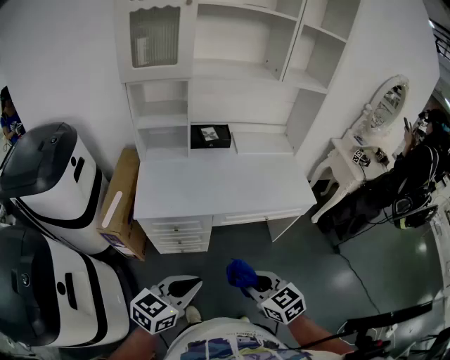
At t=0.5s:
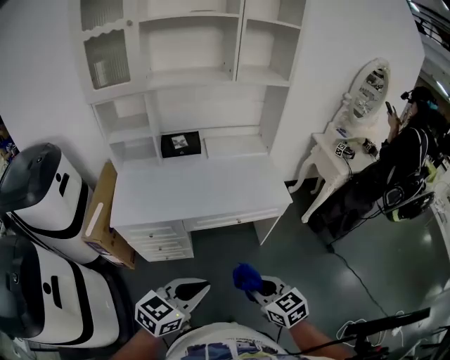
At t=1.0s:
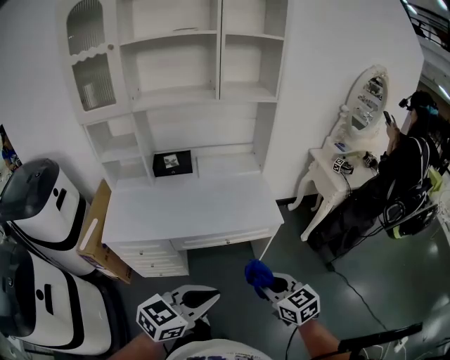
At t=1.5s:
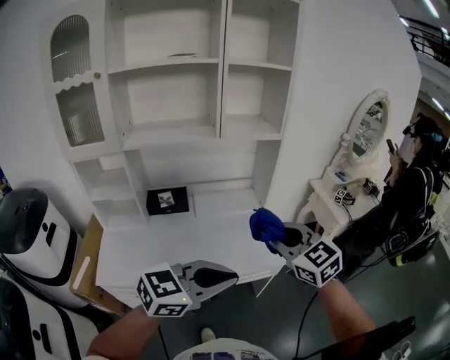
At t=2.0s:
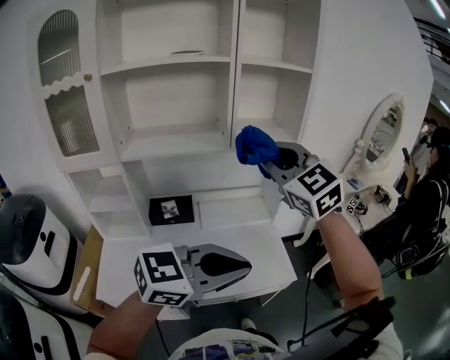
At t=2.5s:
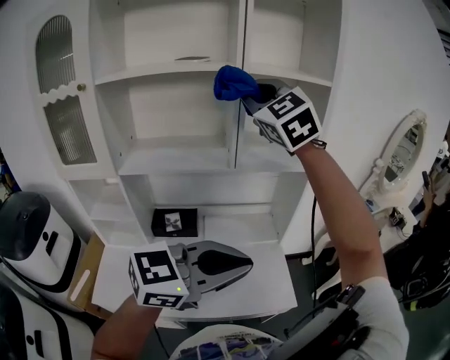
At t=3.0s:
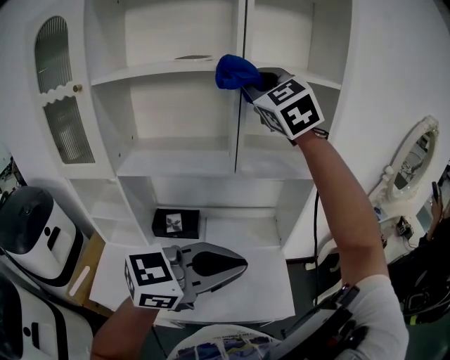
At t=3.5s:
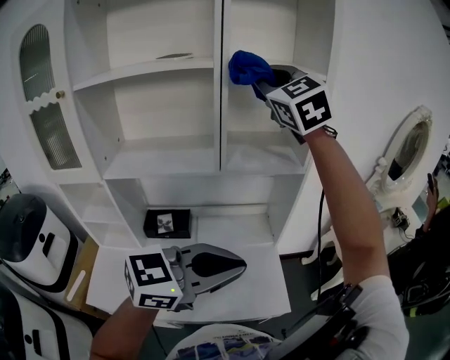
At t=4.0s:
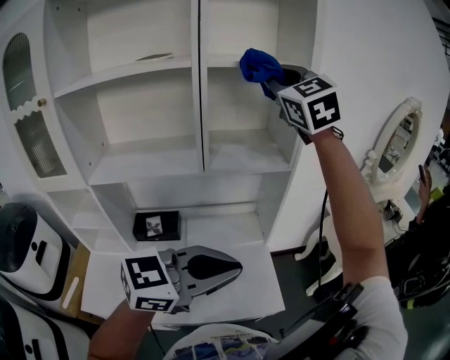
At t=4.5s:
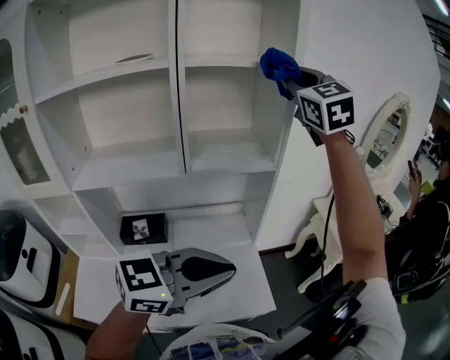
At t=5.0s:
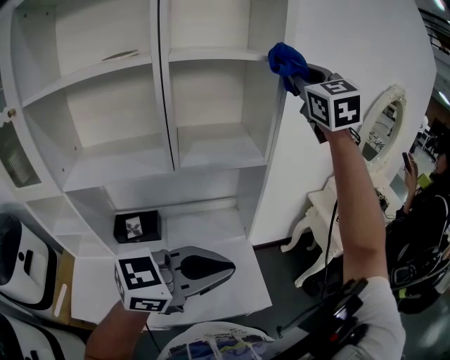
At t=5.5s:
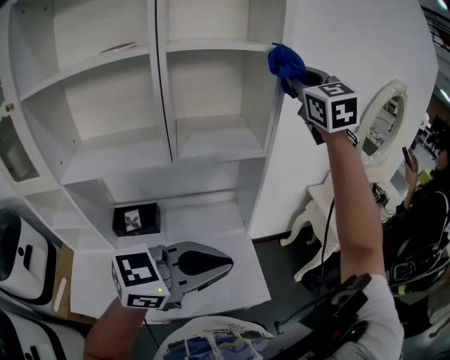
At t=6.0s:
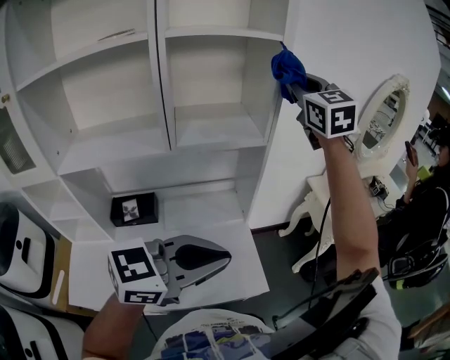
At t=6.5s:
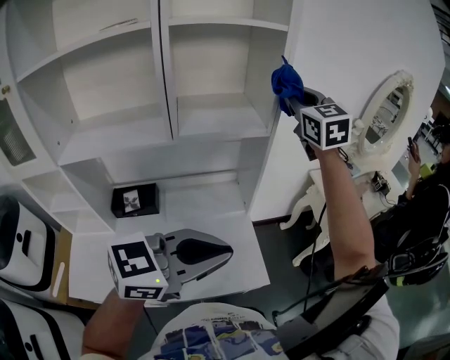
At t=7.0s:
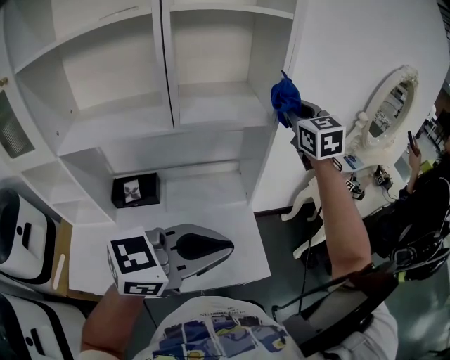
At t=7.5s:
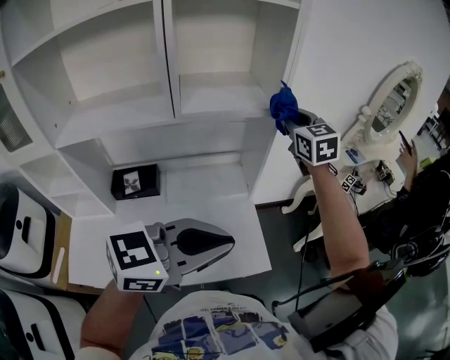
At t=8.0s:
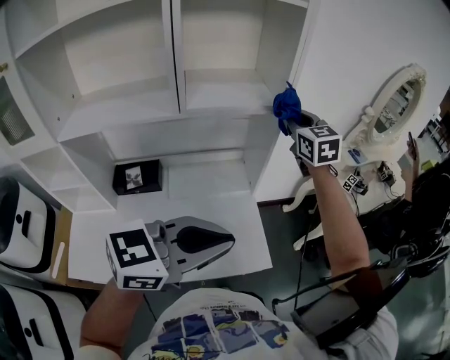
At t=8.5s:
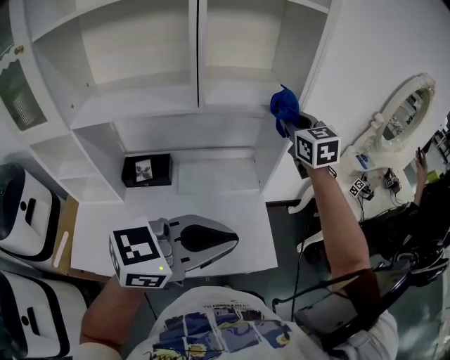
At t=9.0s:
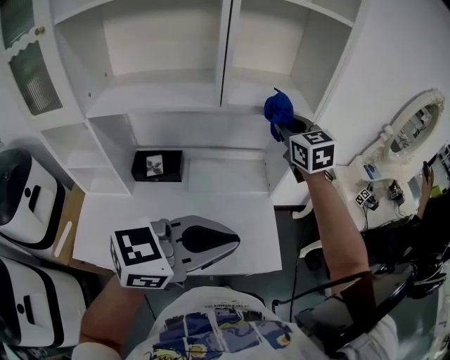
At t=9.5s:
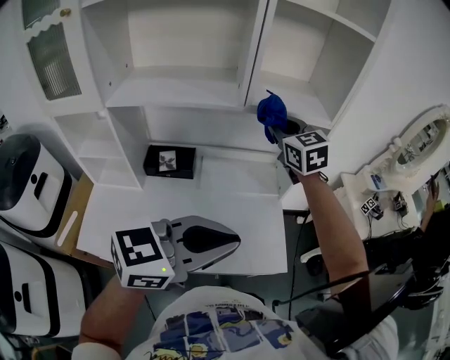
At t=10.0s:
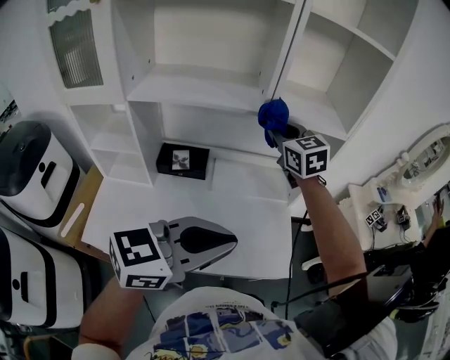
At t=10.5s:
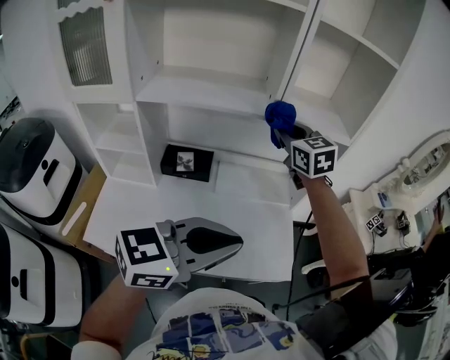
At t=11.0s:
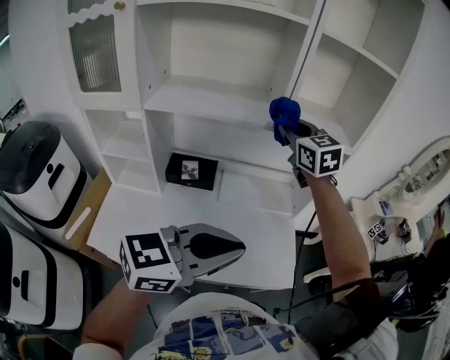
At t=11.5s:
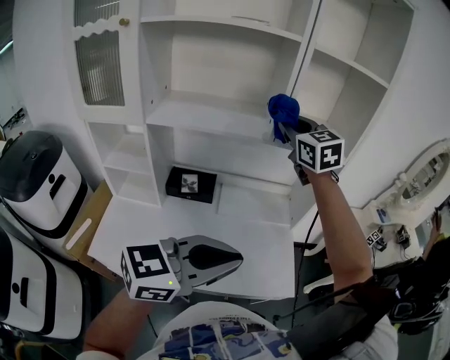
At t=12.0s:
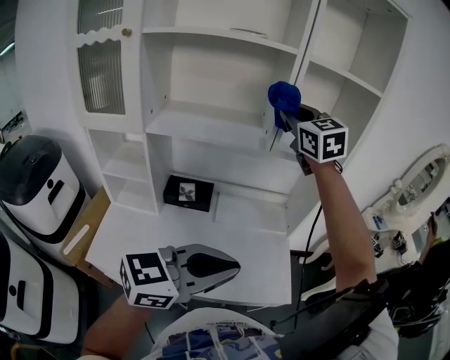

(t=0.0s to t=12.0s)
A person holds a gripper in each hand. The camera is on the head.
t=0.0s - t=2.0s: The two grippers travel together, forward, roughly 50 cm. The left gripper moves upward, approximately 25 cm, and rotates some 40 degrees; the right gripper moves upward, about 40 cm, and turns by roughly 50 degrees.
t=2.0s - t=4.0s: The right gripper travels forward and upward by about 30 cm. Meanwhile the left gripper heads forward, covering approximately 15 cm.
t=4.0s - t=6.0s: The right gripper is displaced to the right, forward and downward by about 15 cm.
t=6.0s - t=8.0s: The right gripper shifts some 20 cm downward.
t=8.0s - t=10.0s: The left gripper is displaced to the left and backward by some 15 cm, while the right gripper is displaced to the left and backward by about 25 cm, and rotates about 20 degrees.
t=10.0s - t=12.0s: The right gripper shifts approximately 20 cm upward.

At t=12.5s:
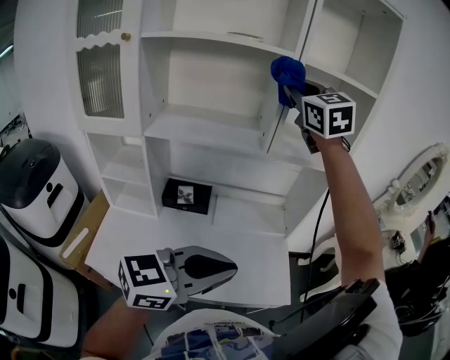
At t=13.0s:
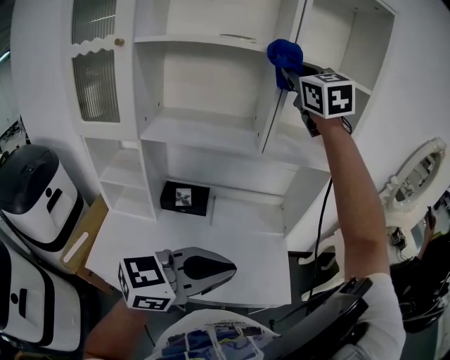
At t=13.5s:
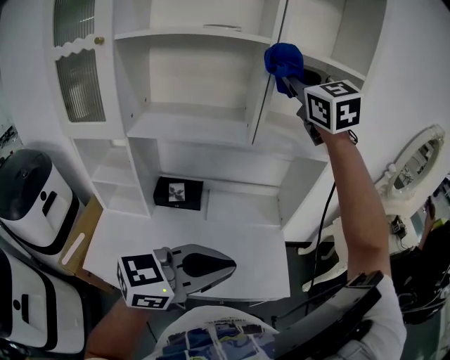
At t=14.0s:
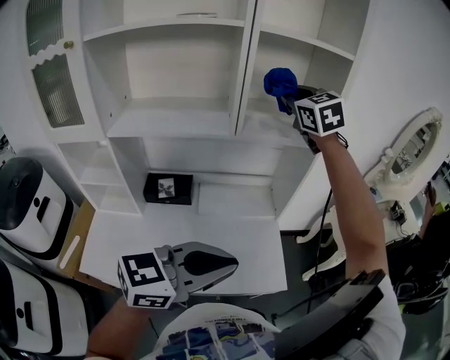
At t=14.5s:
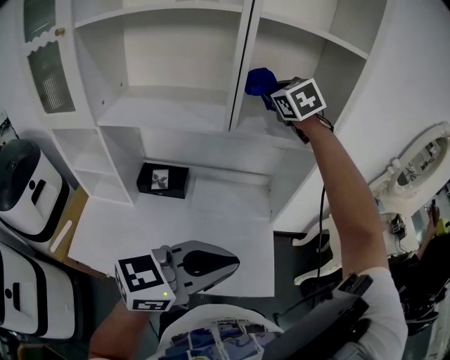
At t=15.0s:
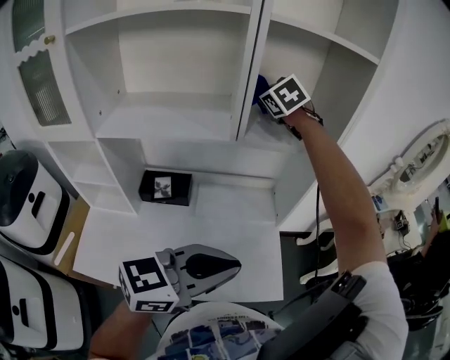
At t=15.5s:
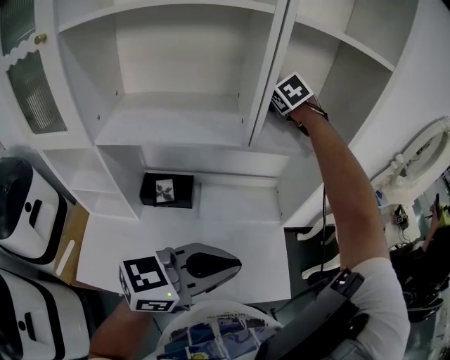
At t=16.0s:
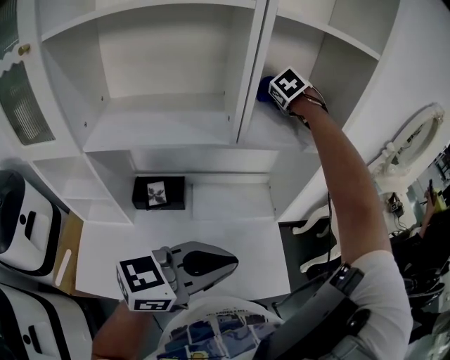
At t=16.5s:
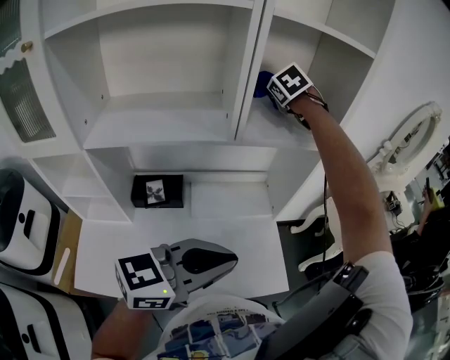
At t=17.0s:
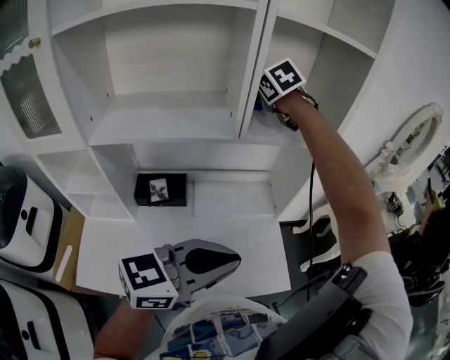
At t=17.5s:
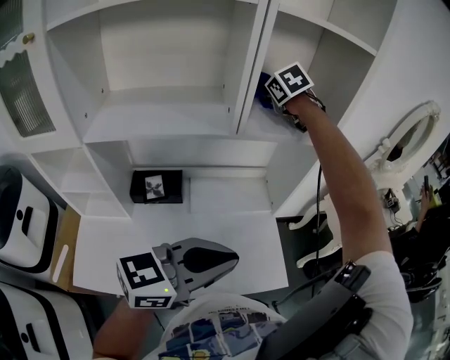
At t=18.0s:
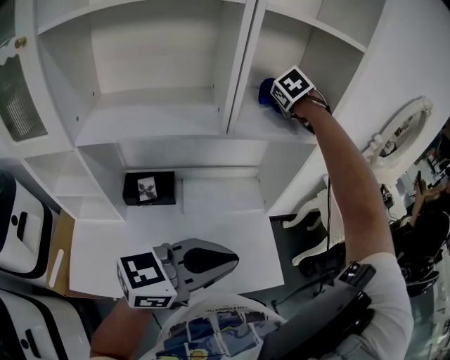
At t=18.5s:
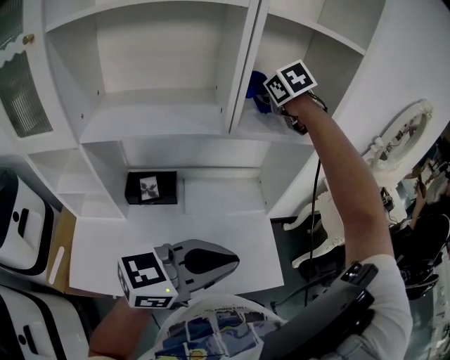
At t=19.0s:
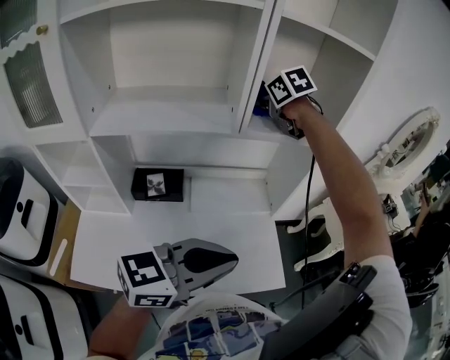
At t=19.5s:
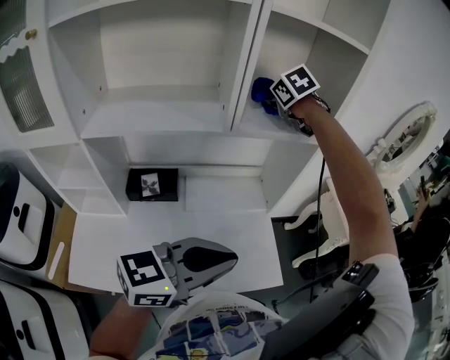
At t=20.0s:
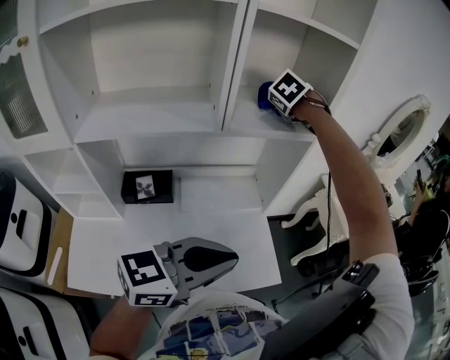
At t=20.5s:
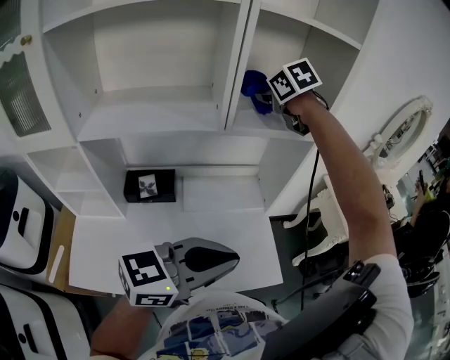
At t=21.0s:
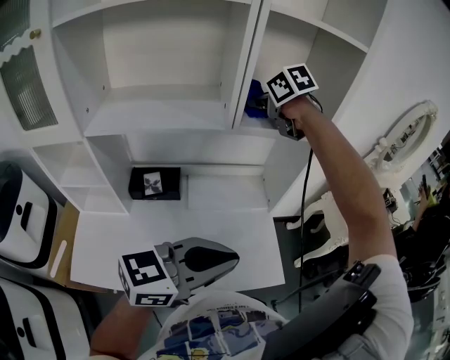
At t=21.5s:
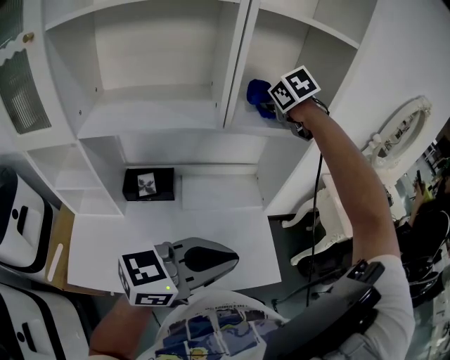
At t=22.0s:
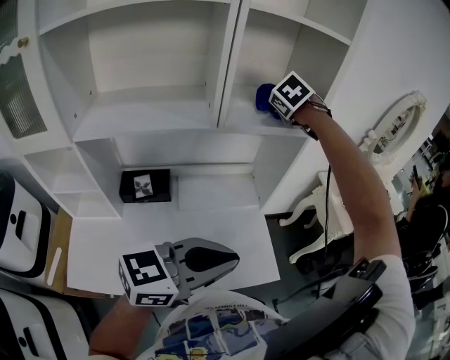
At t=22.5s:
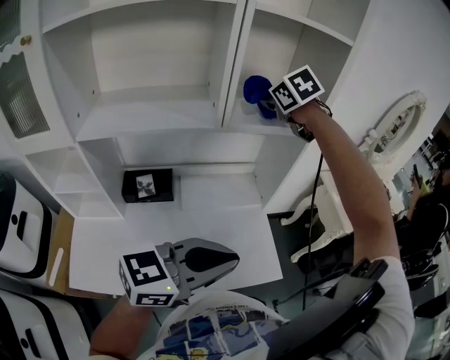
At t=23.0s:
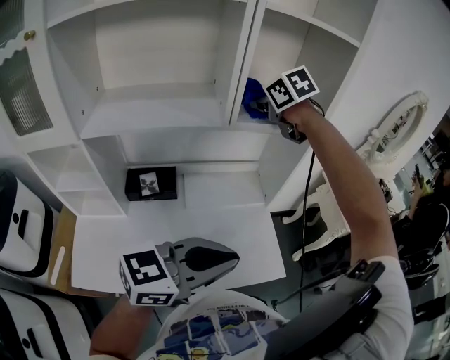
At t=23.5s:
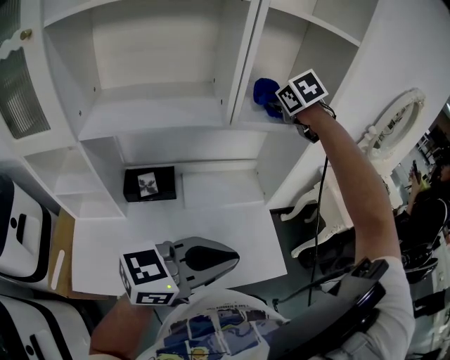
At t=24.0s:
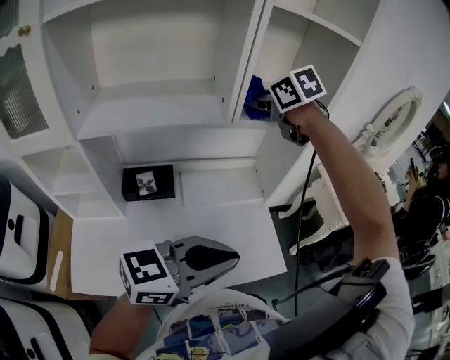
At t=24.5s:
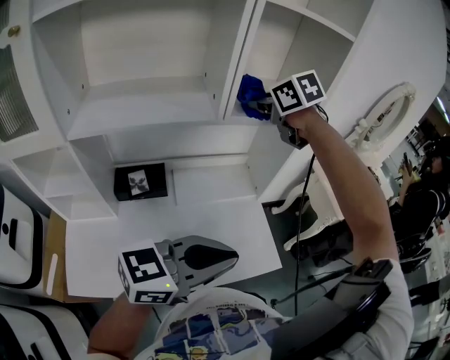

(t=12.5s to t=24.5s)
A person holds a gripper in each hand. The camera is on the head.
t=12.5s - t=14.5s: The right gripper travels forward and downward by roughly 20 cm, and changes its angle by approximately 30 degrees. Meanwhile the left gripper shifts some 10 cm forward and to the right.
t=14.5s - t=16.5s: The left gripper goes about 10 cm to the left; the right gripper goes about 10 cm forward, and rotates roughly 30 degrees.
t=16.5s - t=18.5s: The right gripper moves left and right over about 10 cm, changing direction 2 times.
t=18.5s - t=20.5s: The right gripper goes to the right and returns, about 5 cm each way.
t=22.5s - t=24.5s: The right gripper moves about 5 cm.

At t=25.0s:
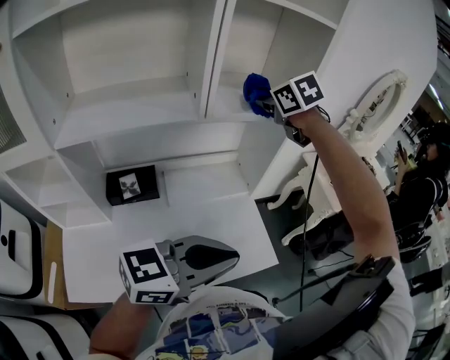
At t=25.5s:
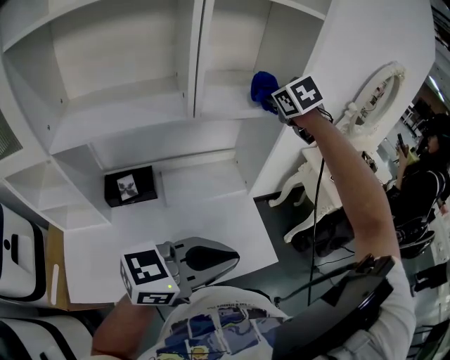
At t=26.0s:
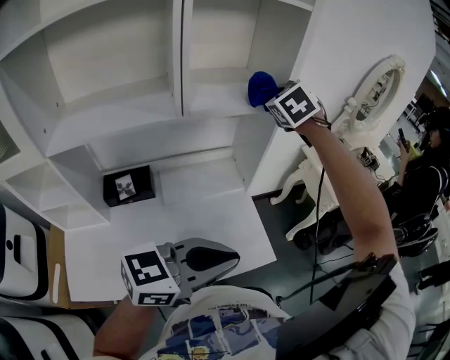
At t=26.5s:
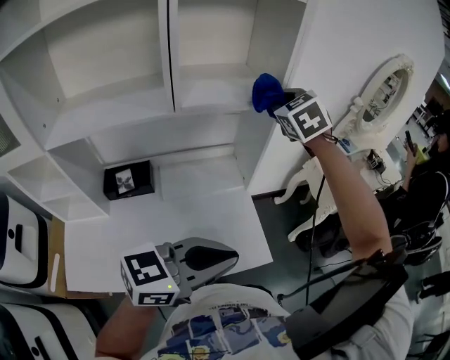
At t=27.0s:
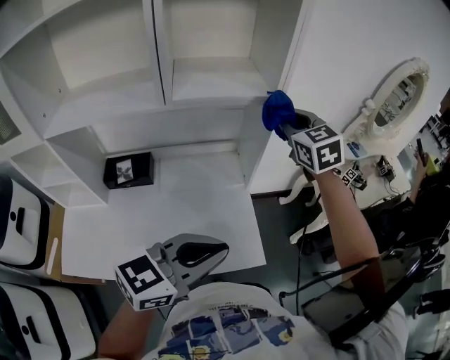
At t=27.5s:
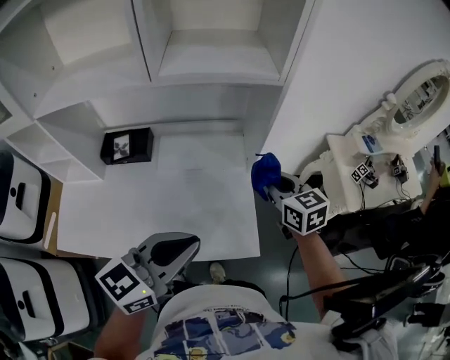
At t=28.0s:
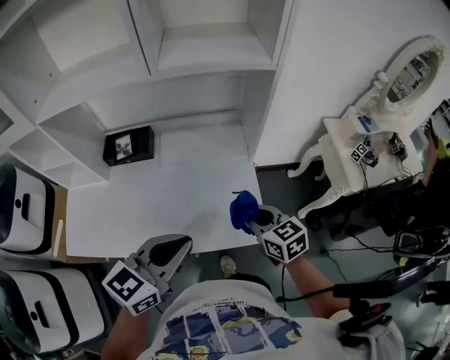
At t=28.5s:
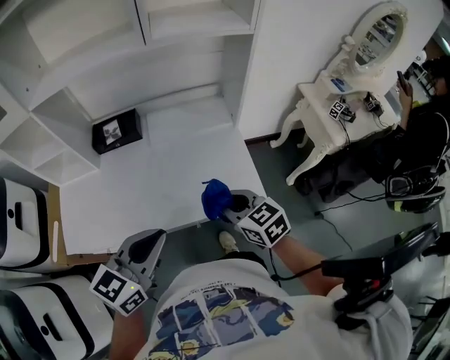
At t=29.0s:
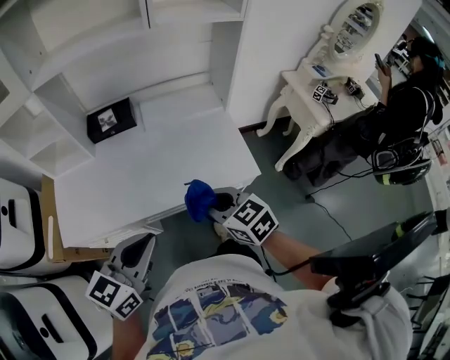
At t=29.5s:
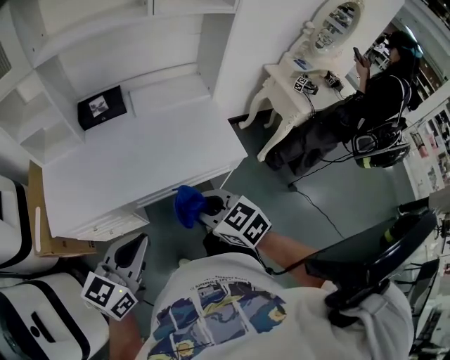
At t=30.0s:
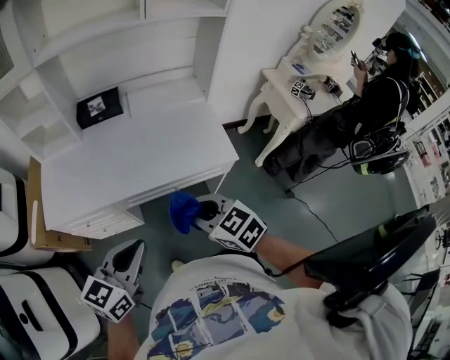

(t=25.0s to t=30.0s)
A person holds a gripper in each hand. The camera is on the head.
t=25.0s - t=27.5s: The right gripper shifts some 25 cm downward, and changes its angle by about 20 degrees. The left gripper changes place by about 10 cm, and turns by about 40 degrees.
t=27.5s - t=30.0s: Both grippers travel together backward and to the left, approximately 40 cm.
